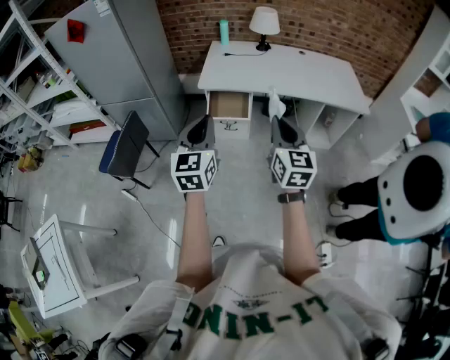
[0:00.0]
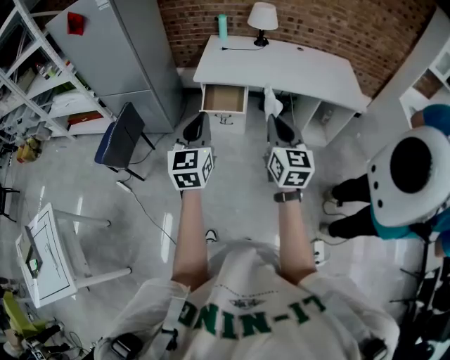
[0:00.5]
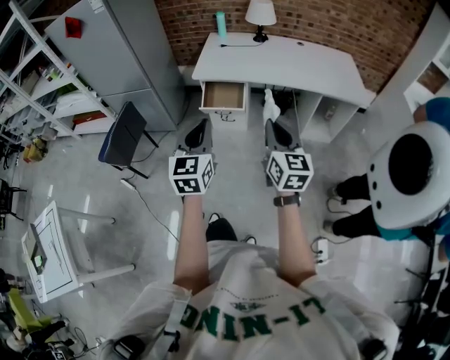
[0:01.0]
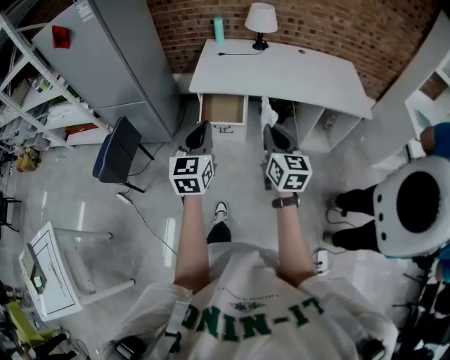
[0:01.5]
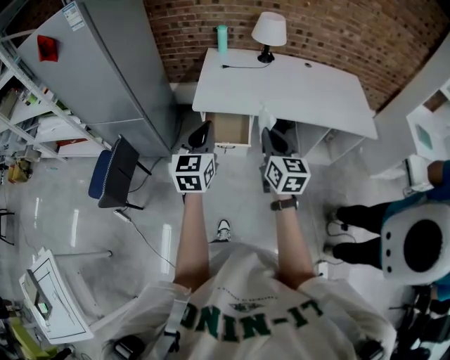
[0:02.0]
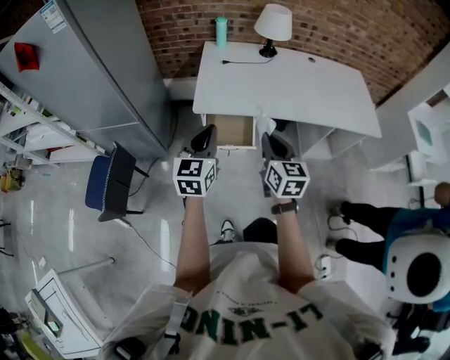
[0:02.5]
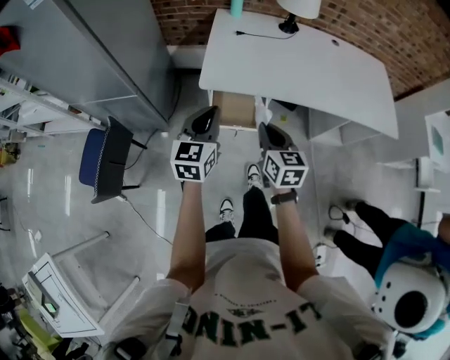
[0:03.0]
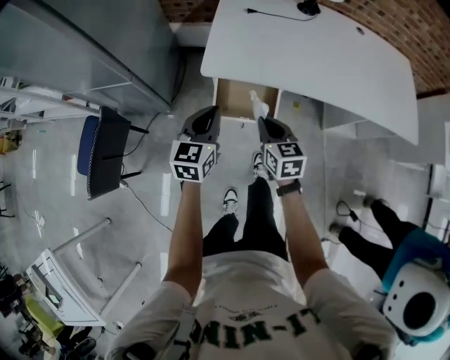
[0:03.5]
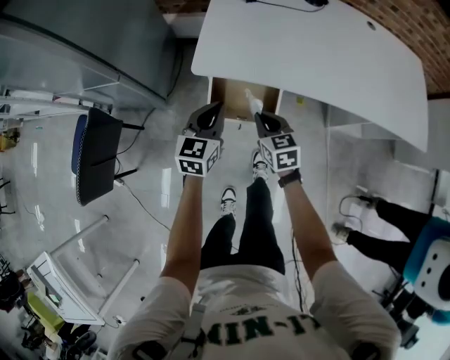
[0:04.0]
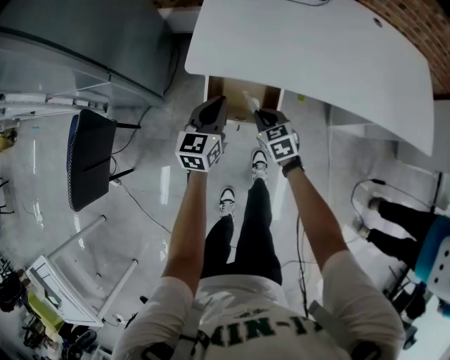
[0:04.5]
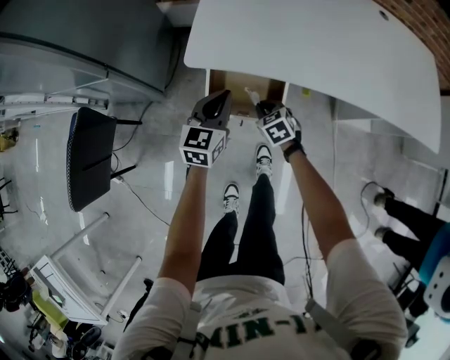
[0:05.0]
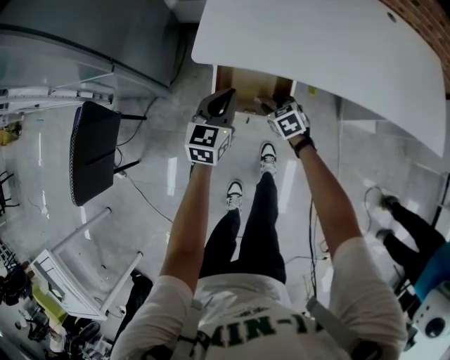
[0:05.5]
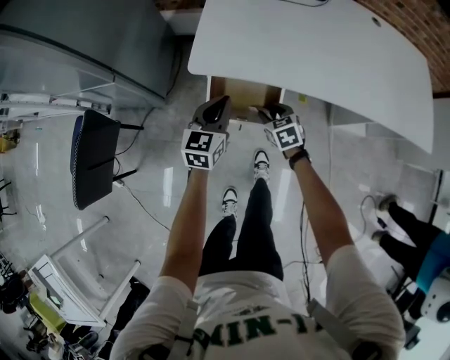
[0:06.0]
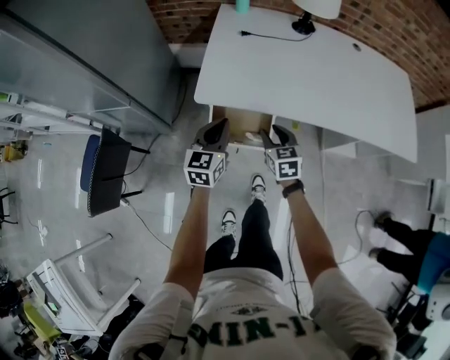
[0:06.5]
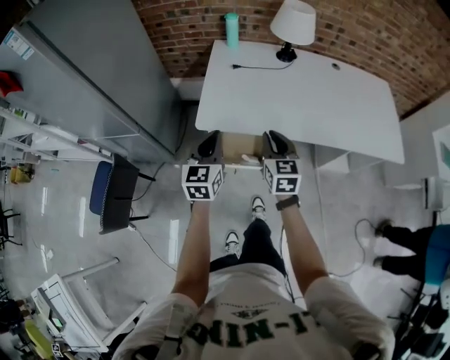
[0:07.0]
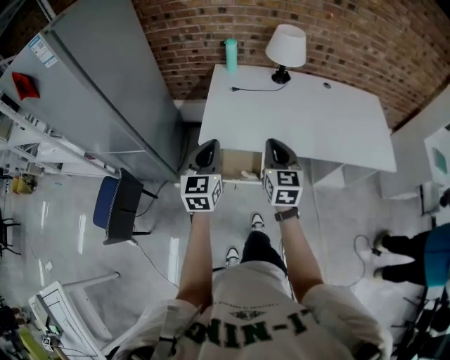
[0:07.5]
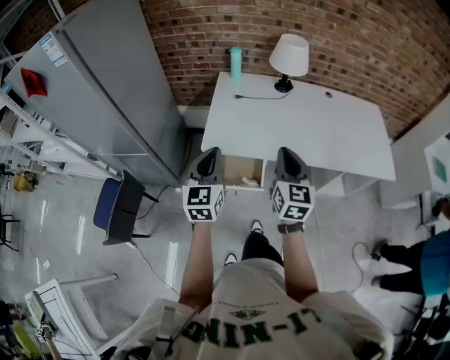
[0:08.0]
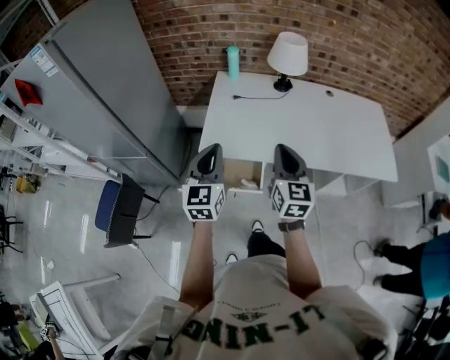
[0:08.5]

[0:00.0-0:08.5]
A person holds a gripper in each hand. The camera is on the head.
0:00.0 to 0:02.0: The grippers both shift forward by some 20 cm.
0:02.0 to 0:04.0: The two grippers go roughly 40 cm downward and forward. The right gripper changes its angle by about 30 degrees.
0:04.0 to 0:06.5: The left gripper moves approximately 5 cm. Meanwhile the right gripper shifts approximately 5 cm to the right, travels downward and back again, approximately 15 cm each way, and opens its fingers.
0:06.5 to 0:08.5: The grippers both shift upward by roughly 25 cm. The right gripper turns by some 30 degrees, and closes.

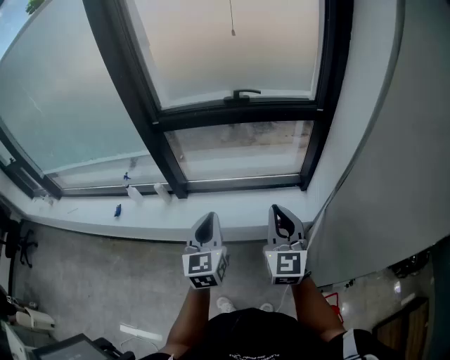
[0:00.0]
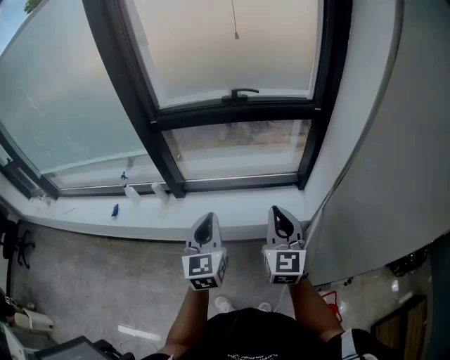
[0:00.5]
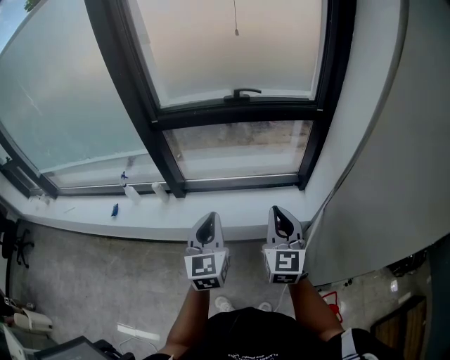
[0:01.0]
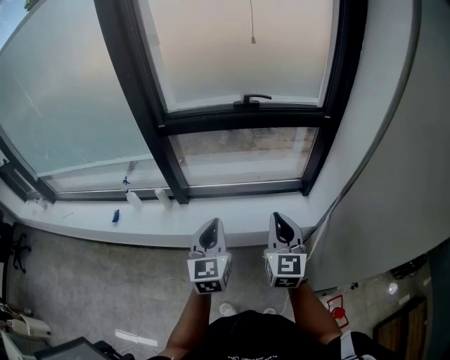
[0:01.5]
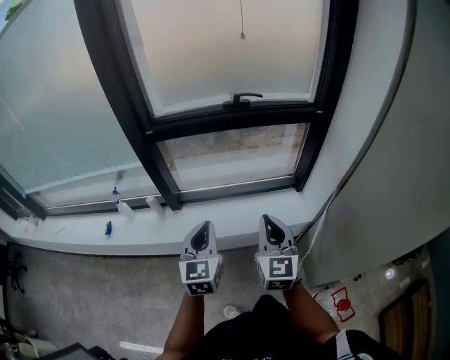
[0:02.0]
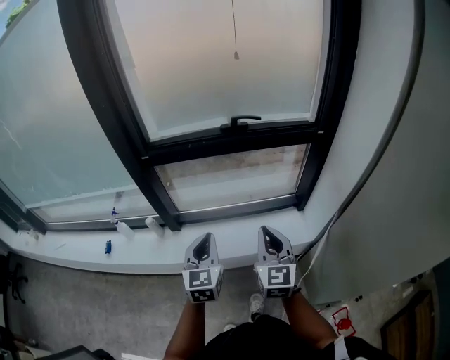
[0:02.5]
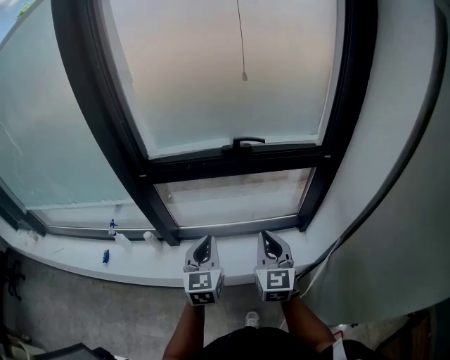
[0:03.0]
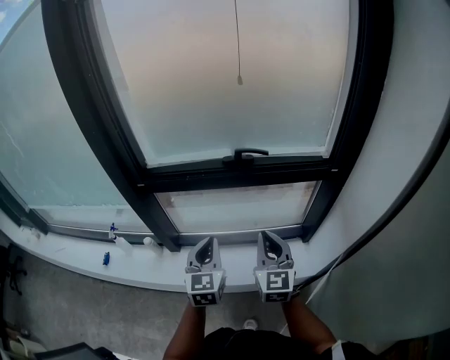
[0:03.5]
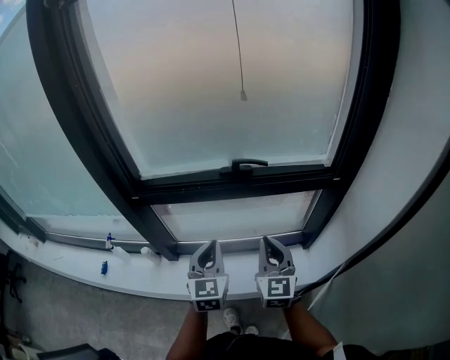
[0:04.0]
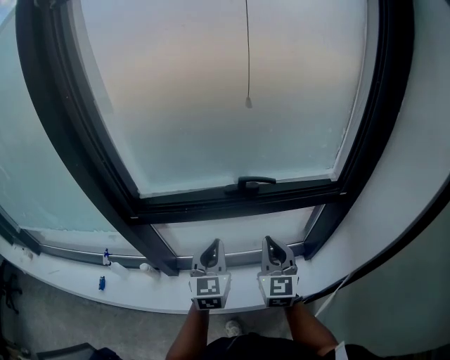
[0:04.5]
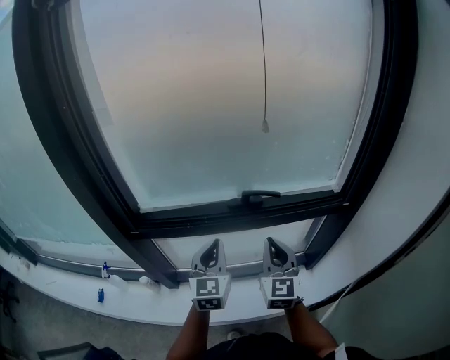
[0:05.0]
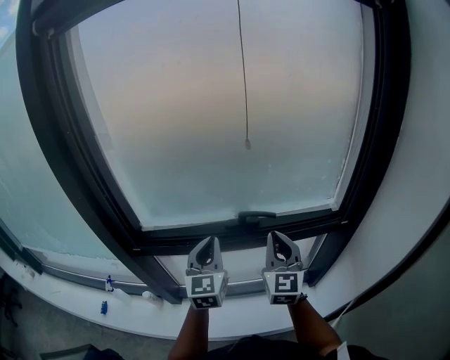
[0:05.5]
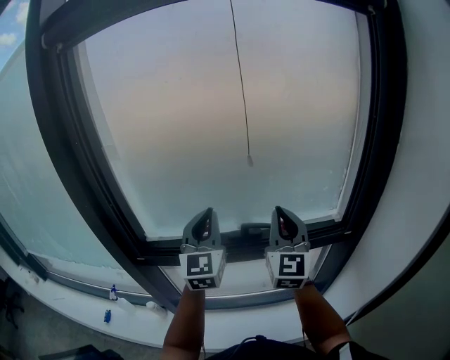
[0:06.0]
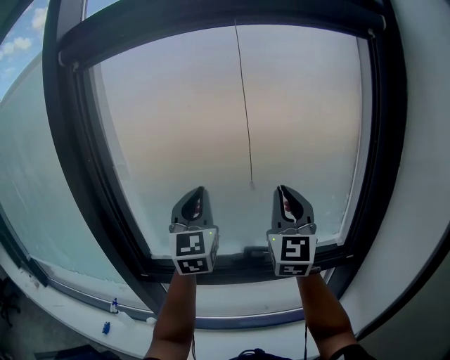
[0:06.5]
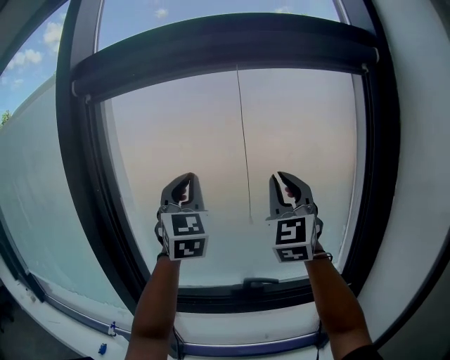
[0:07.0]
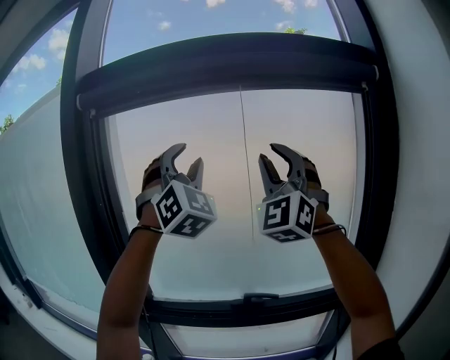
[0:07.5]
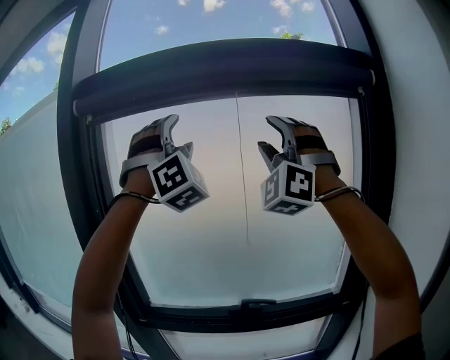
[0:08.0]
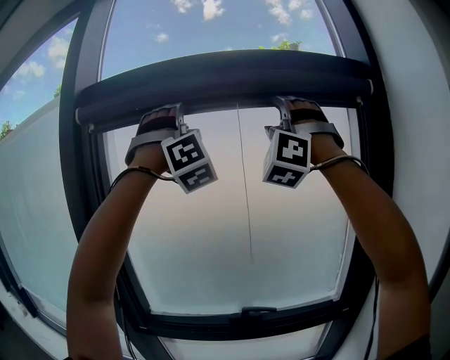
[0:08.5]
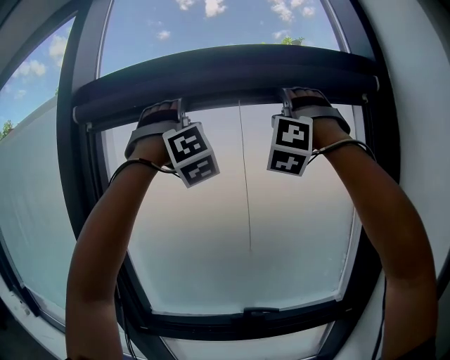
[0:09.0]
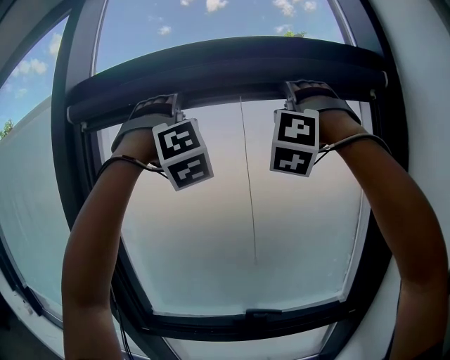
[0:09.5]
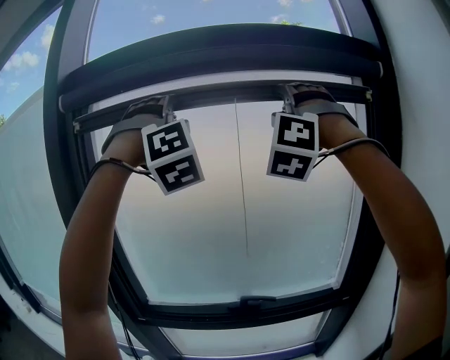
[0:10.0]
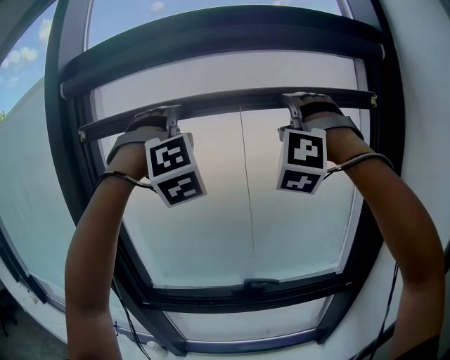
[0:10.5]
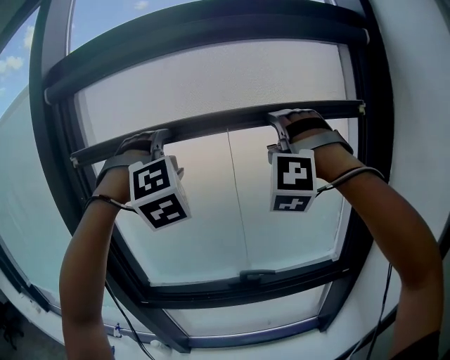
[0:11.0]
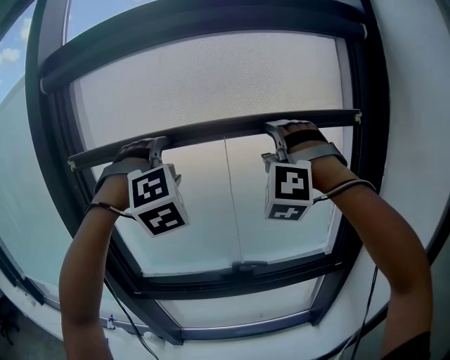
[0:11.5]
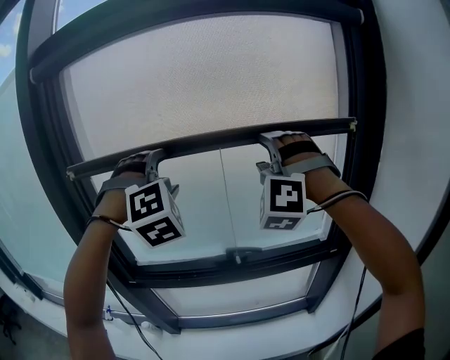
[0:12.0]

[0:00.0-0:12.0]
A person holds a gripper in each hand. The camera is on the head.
0:00.0 to 0:02.0: The two grippers go about 10 cm to the left.
0:02.0 to 0:04.0: The two grippers go approximately 25 cm forward.
0:04.0 to 0:06.0: The grippers both shift upward and forward by about 25 cm. The right gripper turns by roughly 20 degrees; the left gripper turns by roughly 20 degrees.
0:06.0 to 0:08.0: The two grippers go roughly 40 cm upward. The left gripper twists roughly 70 degrees clockwise, seen from behind, and opens. Meanwhile the right gripper rotates around the line of its fingers by approximately 70 degrees, counterclockwise from behind, and opens.
0:08.0 to 0:10.0: The right gripper rotates some 20 degrees.
0:10.0 to 0:12.0: Both grippers travel together downward, some 25 cm. The left gripper turns by some 20 degrees.

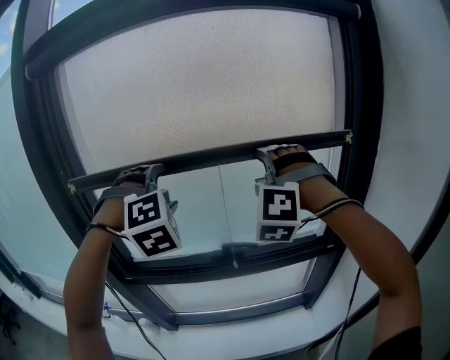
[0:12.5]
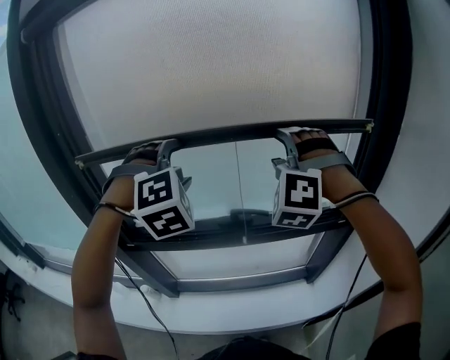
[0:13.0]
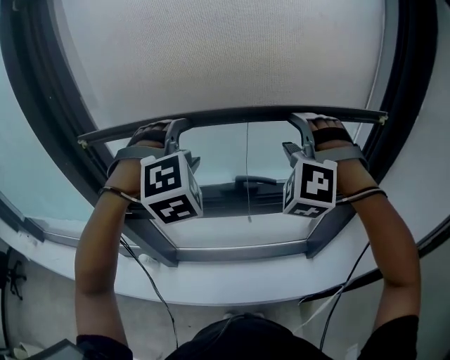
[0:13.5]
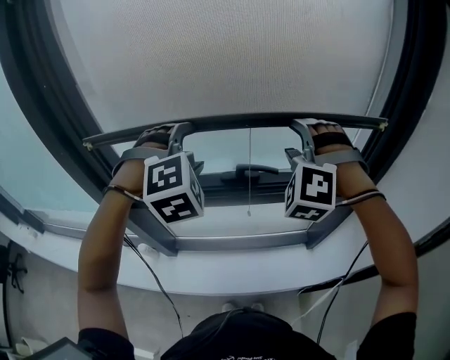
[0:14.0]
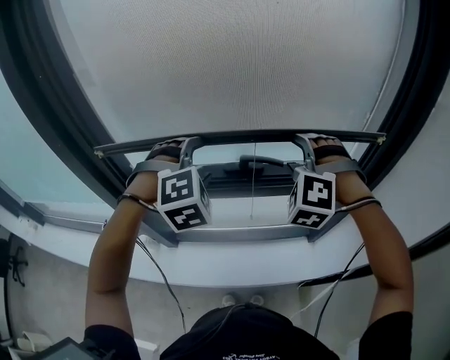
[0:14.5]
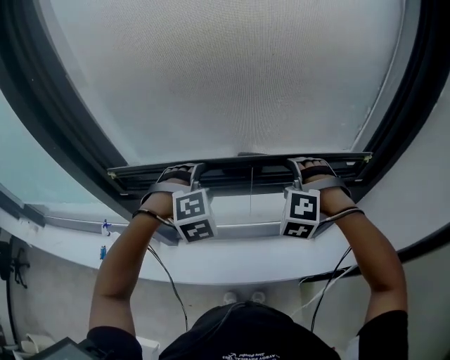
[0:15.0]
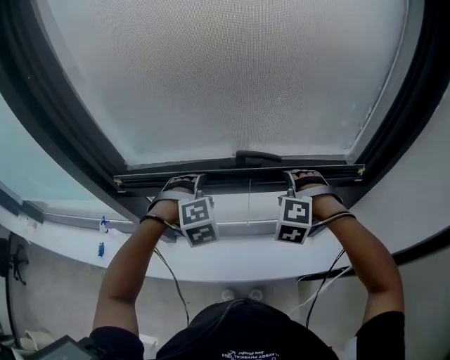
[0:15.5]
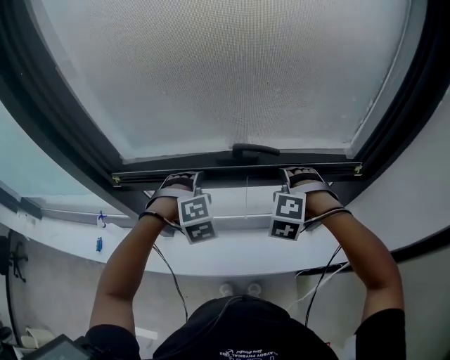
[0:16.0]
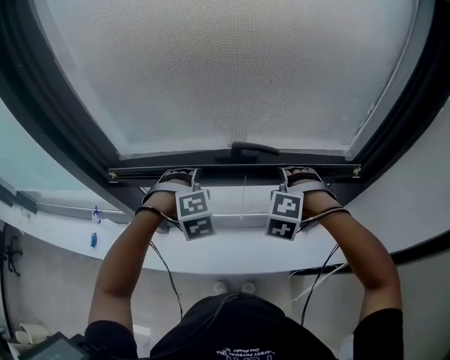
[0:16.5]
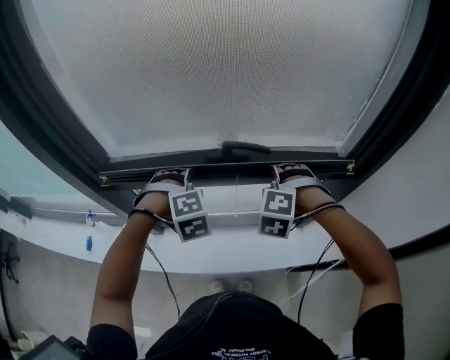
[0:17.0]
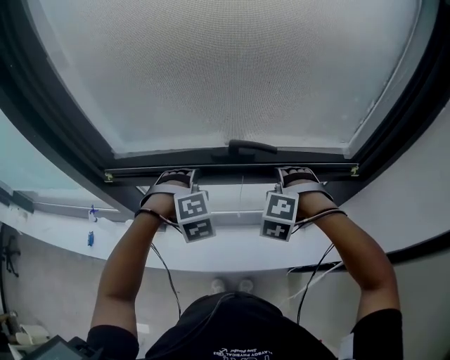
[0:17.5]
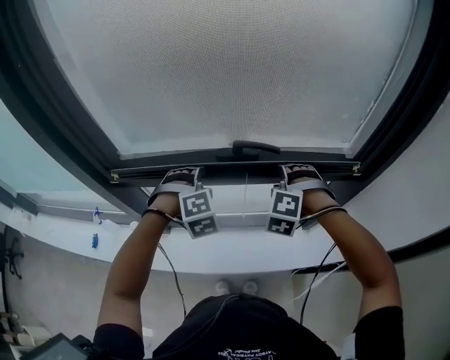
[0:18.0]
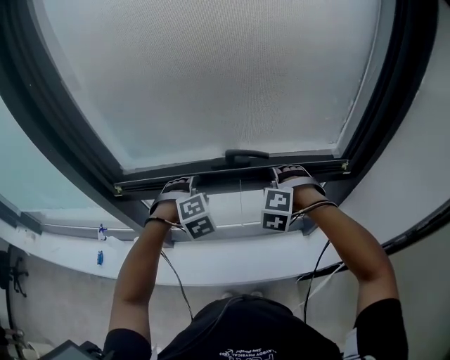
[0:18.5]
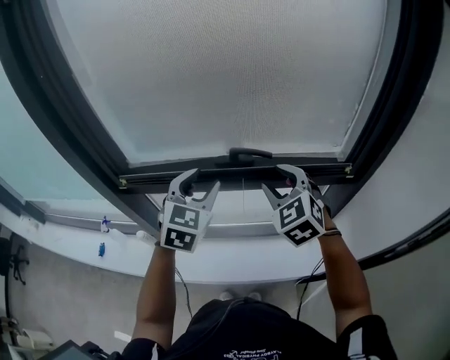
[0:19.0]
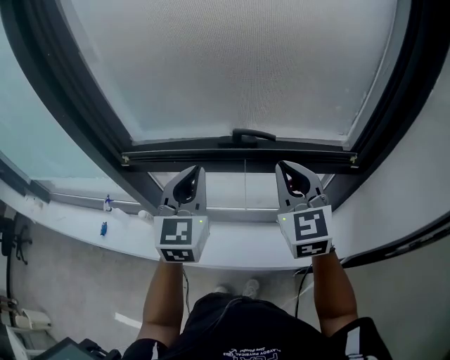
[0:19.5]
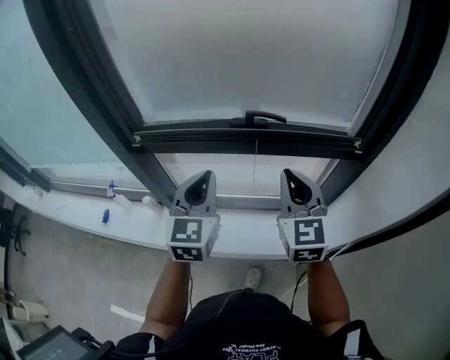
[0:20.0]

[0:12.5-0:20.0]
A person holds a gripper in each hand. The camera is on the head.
0:12.5 to 0:14.5: The two grippers go approximately 5 cm downward. The left gripper changes its angle by roughly 20 degrees. Meanwhile the right gripper rotates about 20 degrees.
0:14.5 to 0:16.5: Both grippers move downward, roughly 15 cm. The right gripper swivels roughly 30 degrees.
0:16.5 to 0:18.0: The grippers move only a little.
0:18.0 to 0:20.0: The two grippers go approximately 20 cm backward and upward. The left gripper twists roughly 70 degrees counterclockwise, seen from behind, and closes. Meanwhile the right gripper rolls clockwise, seen from behind, by about 70 degrees, and closes.
